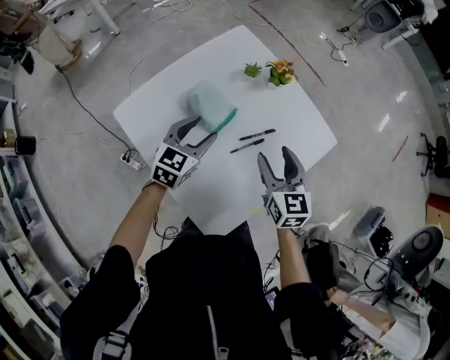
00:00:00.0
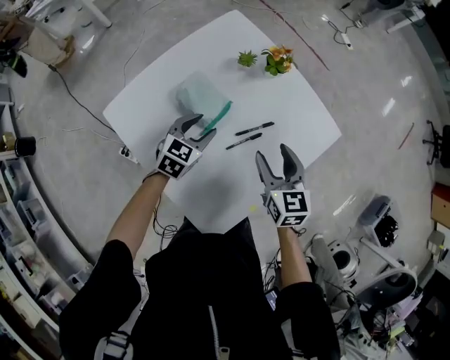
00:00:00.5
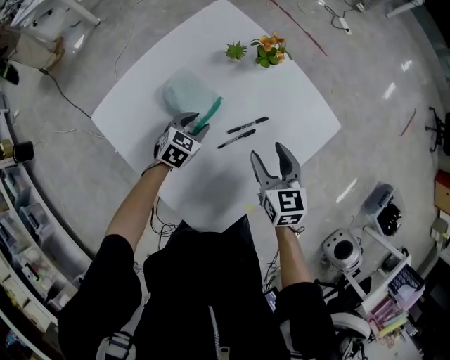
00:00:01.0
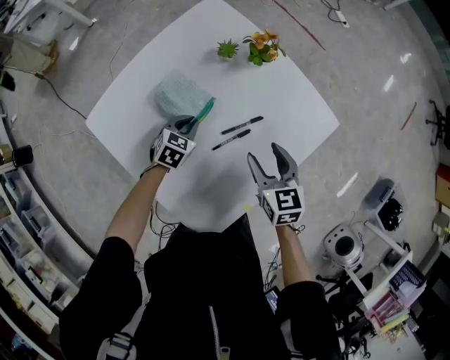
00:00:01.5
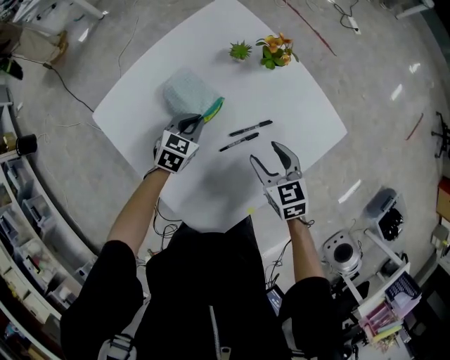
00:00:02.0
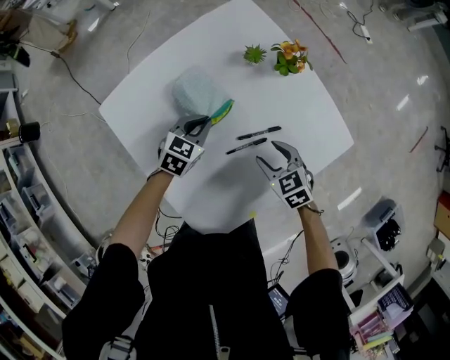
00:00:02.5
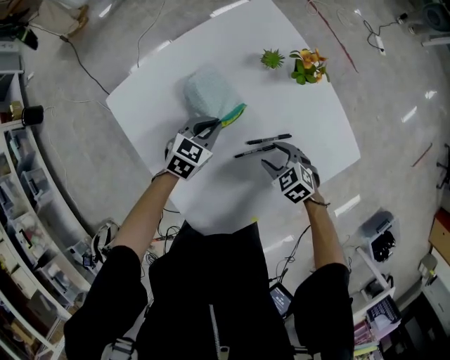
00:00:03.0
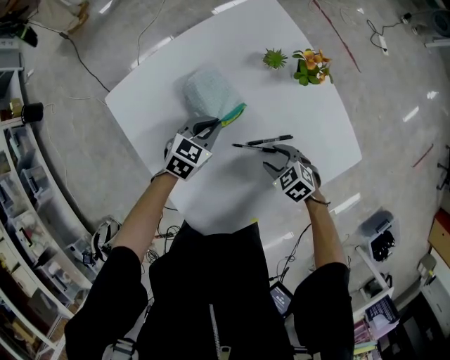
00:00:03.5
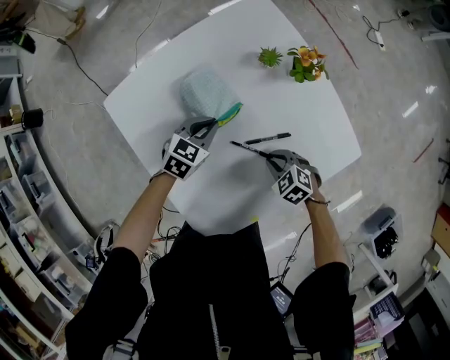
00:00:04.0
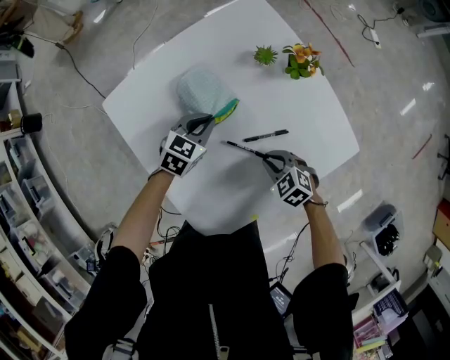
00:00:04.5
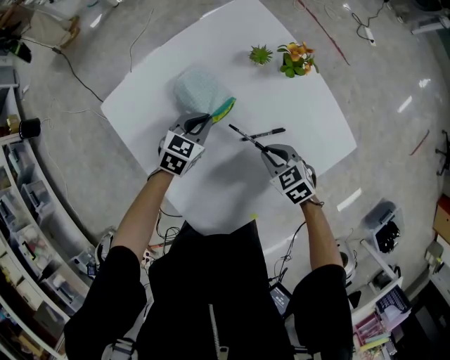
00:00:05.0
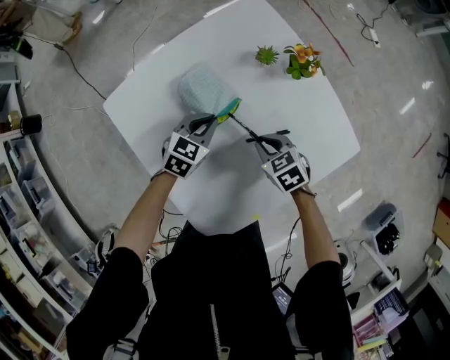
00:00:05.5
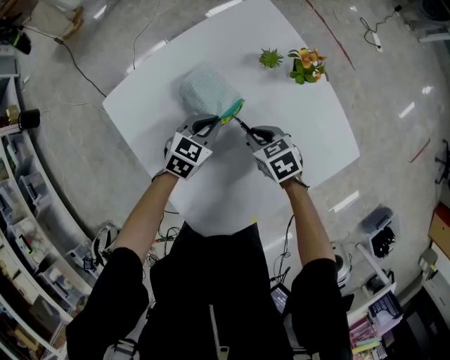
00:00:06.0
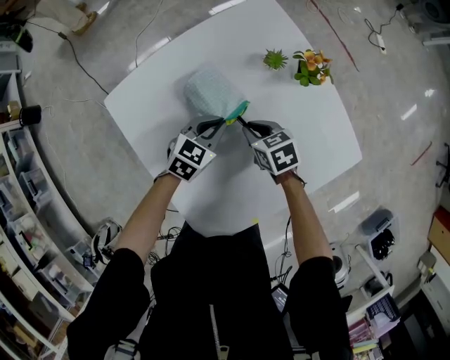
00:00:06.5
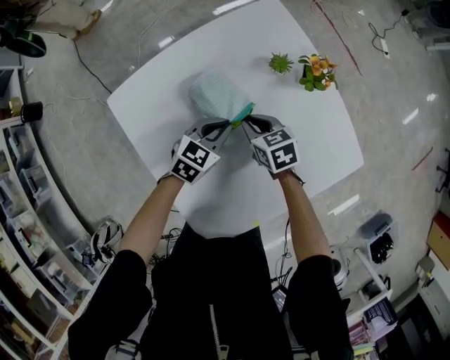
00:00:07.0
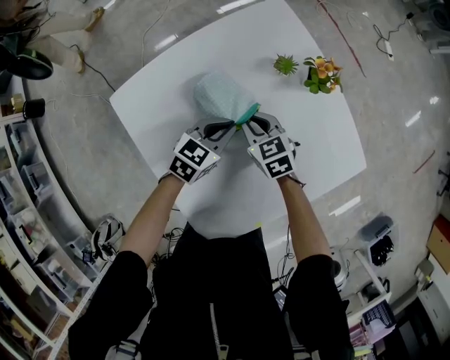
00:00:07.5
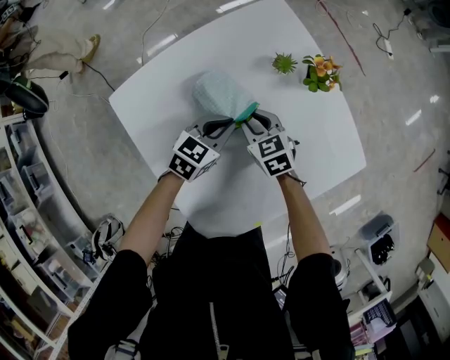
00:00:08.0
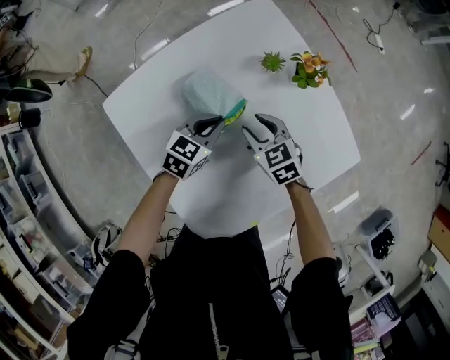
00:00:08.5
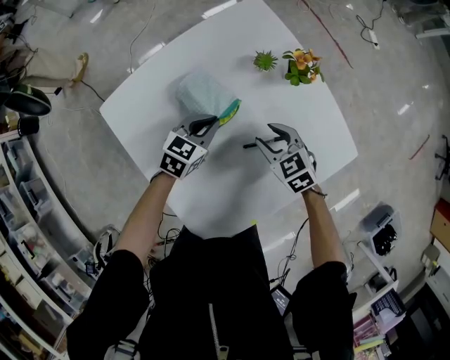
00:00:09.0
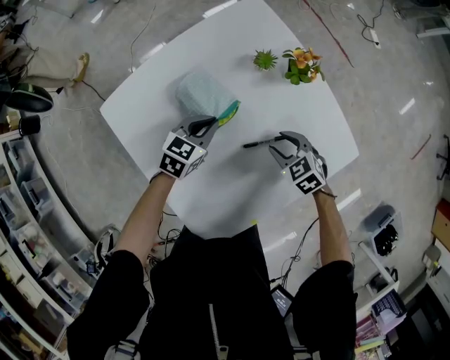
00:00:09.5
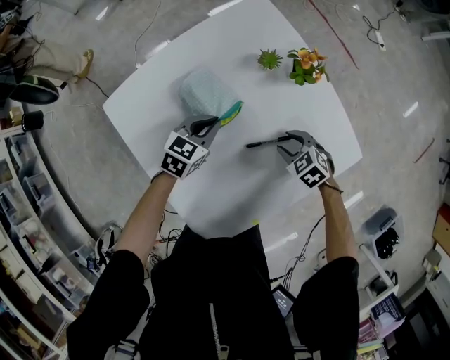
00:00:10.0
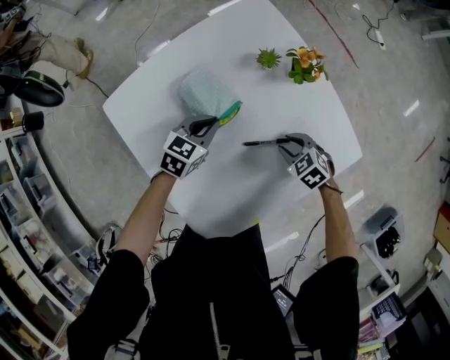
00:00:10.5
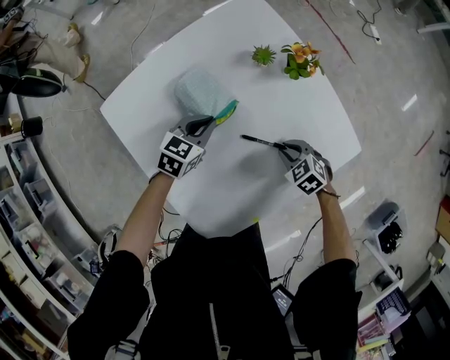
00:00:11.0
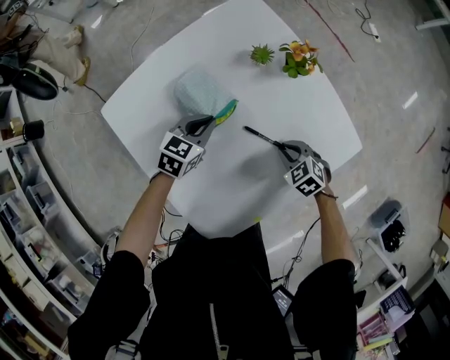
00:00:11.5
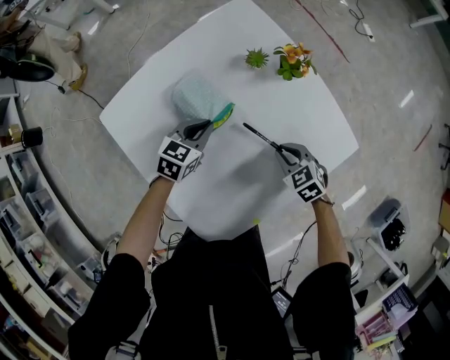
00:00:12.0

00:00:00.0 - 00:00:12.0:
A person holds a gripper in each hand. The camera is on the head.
00:00:00.0 - 00:00:02.0: The grippers both shift downward by some 15 cm. The left gripper closes. Meanwhile the right gripper rotates roughly 20 degrees.
00:00:02.0 - 00:00:04.0: The right gripper goes roughly 10 cm downward, rotates roughly 40 degrees, and closes.
00:00:04.0 - 00:00:06.0: The right gripper goes some 10 cm forward, to the left and upward, and rotates approximately 30 degrees.
00:00:06.0 - 00:00:08.0: The right gripper travels forward by some 5 cm.
00:00:08.0 - 00:00:10.0: The right gripper is displaced to the right and backward by about 15 cm, and changes its angle by approximately 20 degrees.
00:00:10.0 - 00:00:12.0: The right gripper closes its fingers.

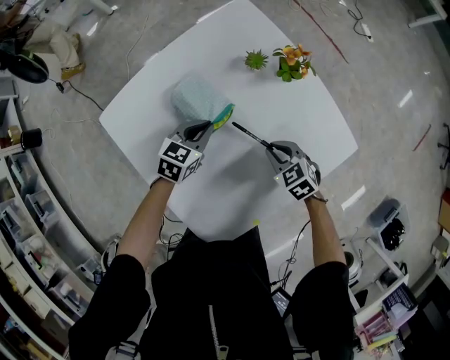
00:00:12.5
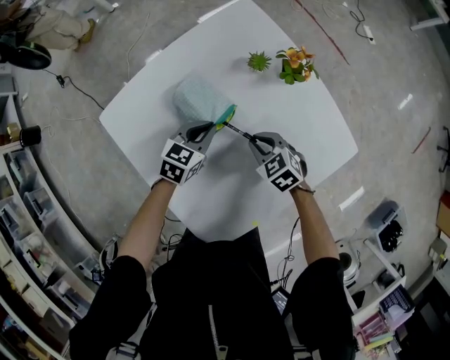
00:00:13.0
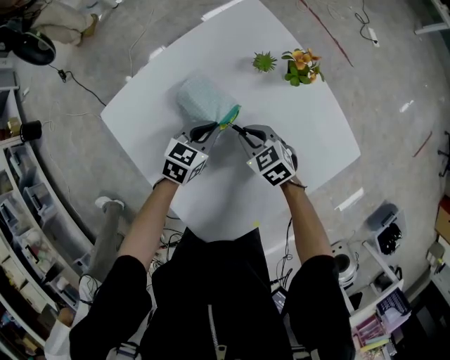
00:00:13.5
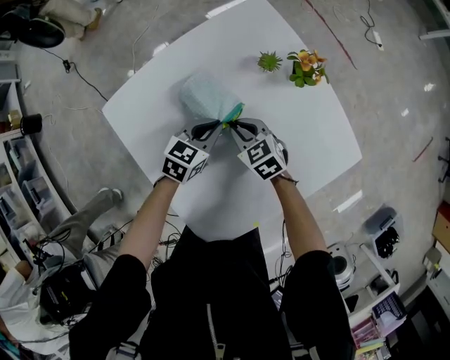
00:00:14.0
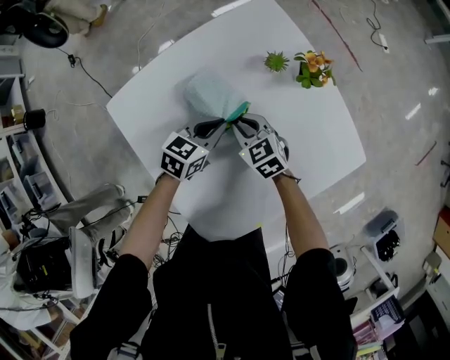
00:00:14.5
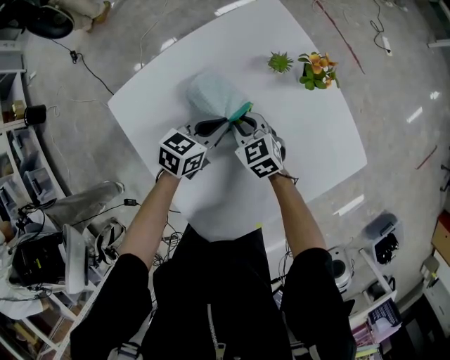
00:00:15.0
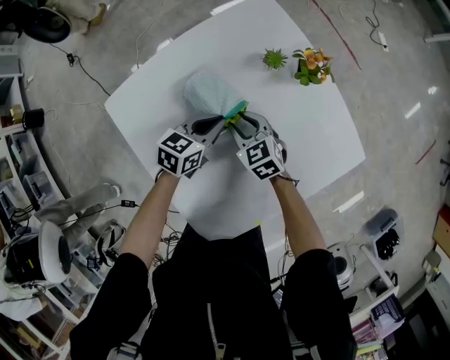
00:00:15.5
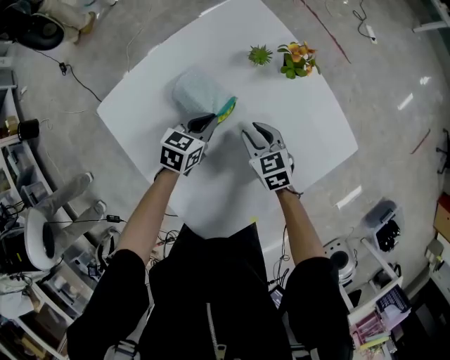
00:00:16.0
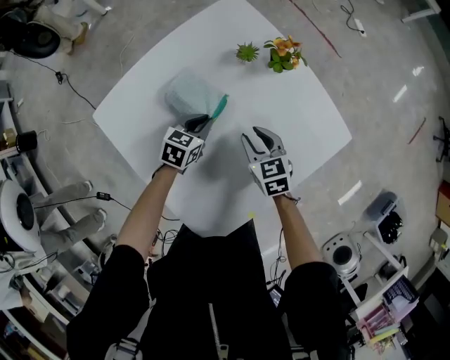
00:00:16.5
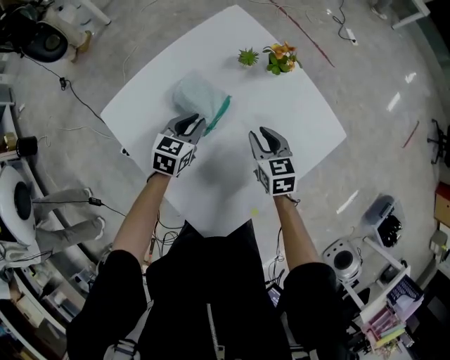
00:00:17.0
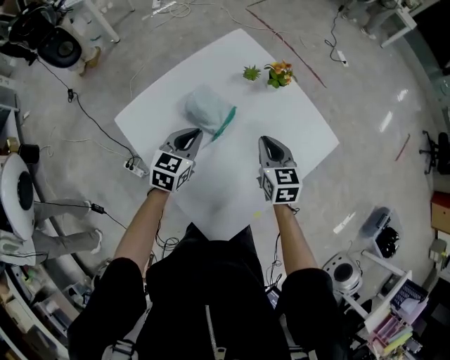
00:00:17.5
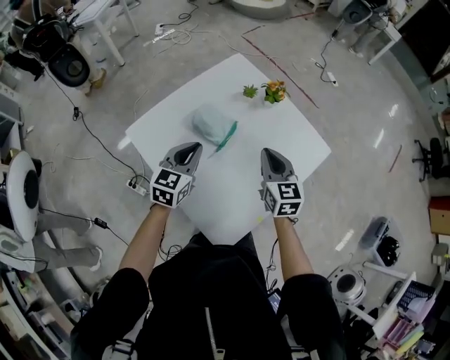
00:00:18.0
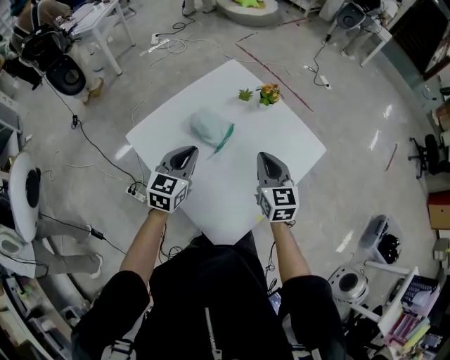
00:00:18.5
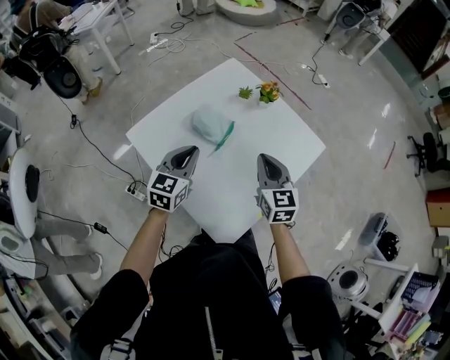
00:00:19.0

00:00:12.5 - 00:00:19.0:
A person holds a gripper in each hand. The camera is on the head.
00:00:12.5 - 00:00:14.5: The right gripper moves to the left and forward, roughly 15 cm.
00:00:14.5 - 00:00:17.0: The right gripper goes about 15 cm to the right, backward and upward, and swivels some 30 degrees.
00:00:17.0 - 00:00:19.0: The two grippers go roughly 20 cm upward and backward. The right gripper turns by about 20 degrees, and closes.

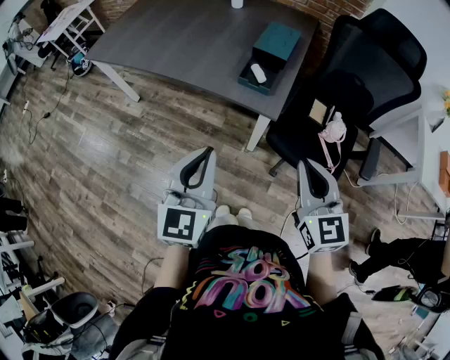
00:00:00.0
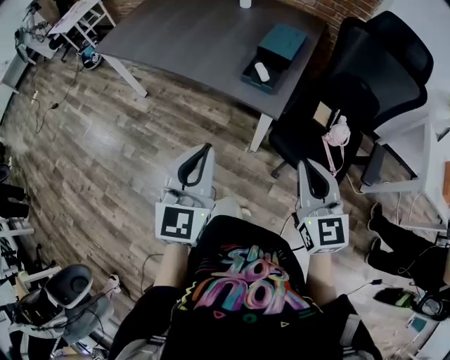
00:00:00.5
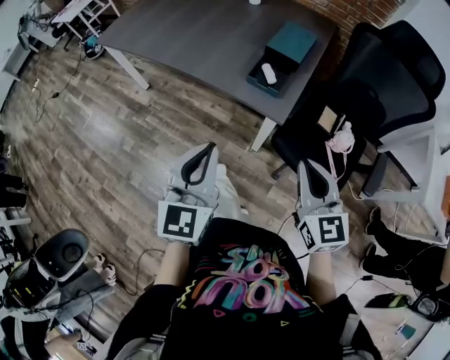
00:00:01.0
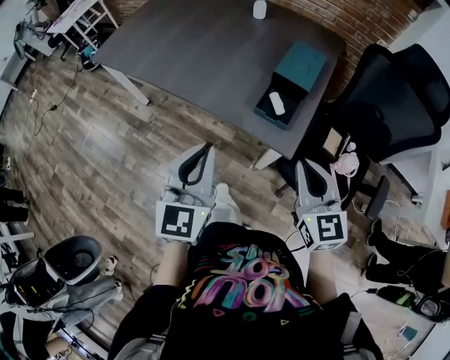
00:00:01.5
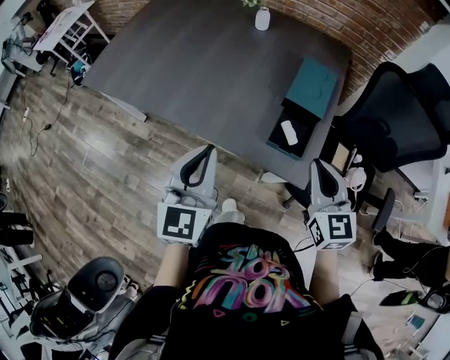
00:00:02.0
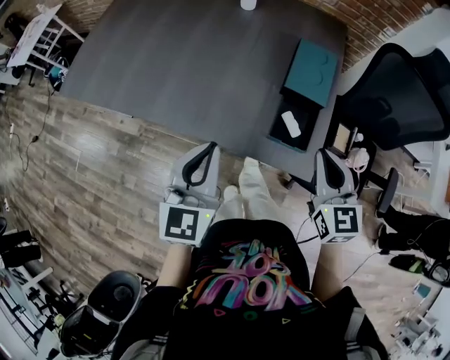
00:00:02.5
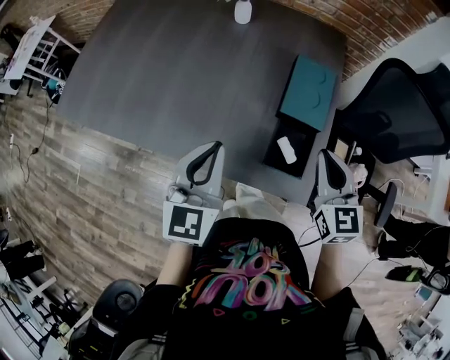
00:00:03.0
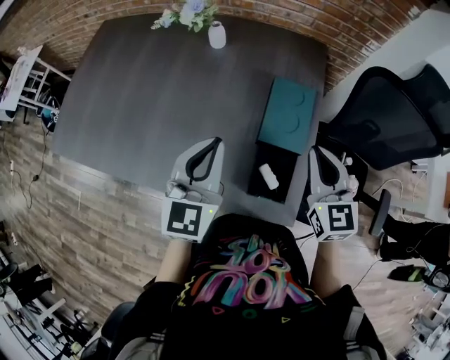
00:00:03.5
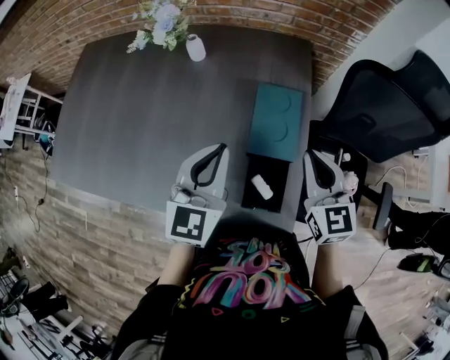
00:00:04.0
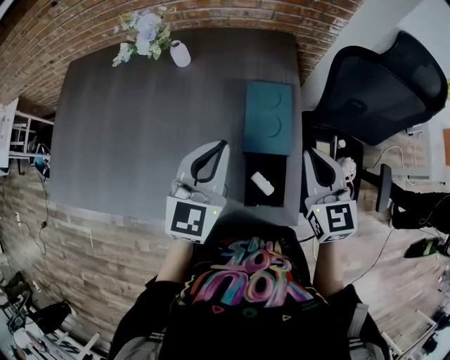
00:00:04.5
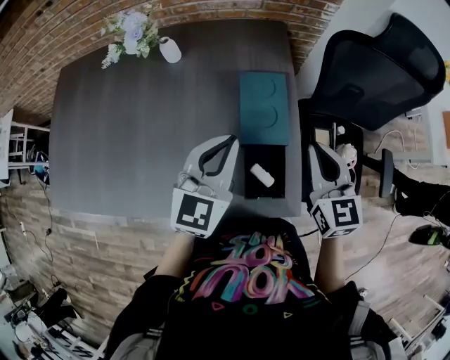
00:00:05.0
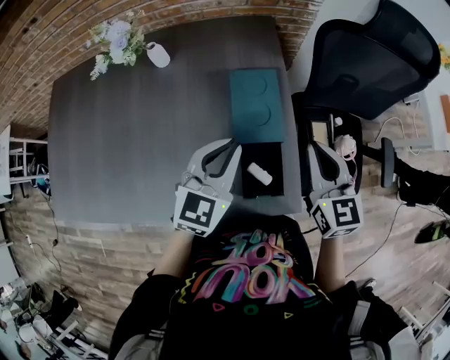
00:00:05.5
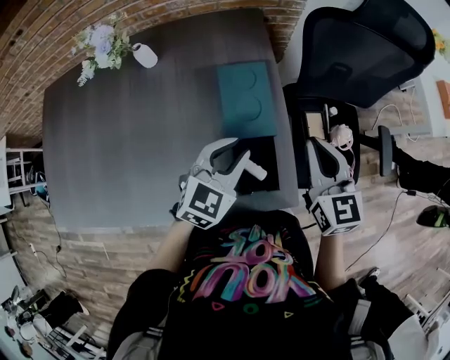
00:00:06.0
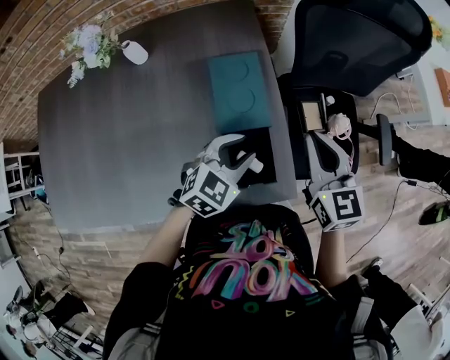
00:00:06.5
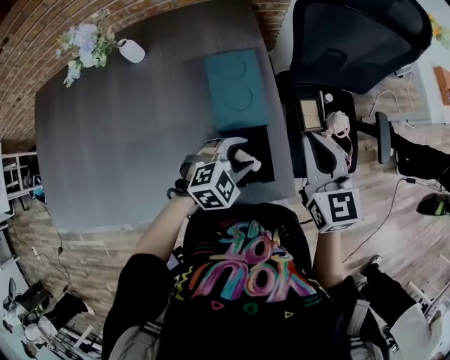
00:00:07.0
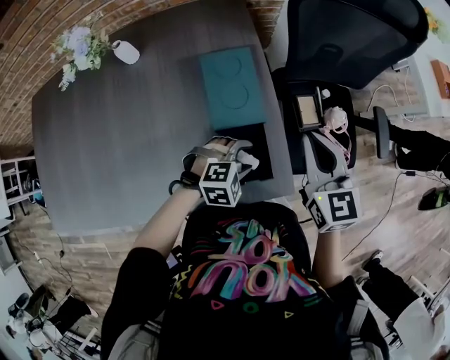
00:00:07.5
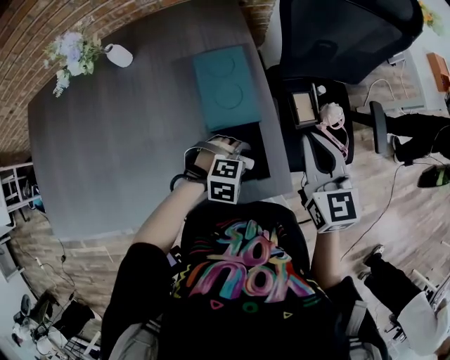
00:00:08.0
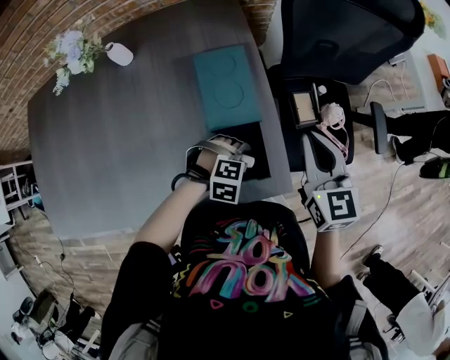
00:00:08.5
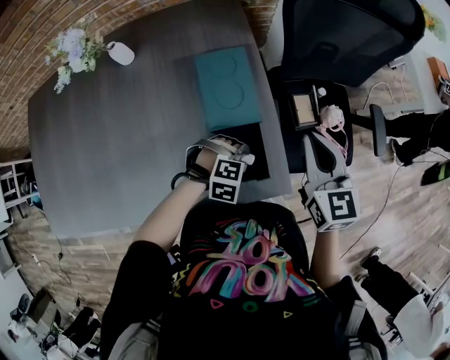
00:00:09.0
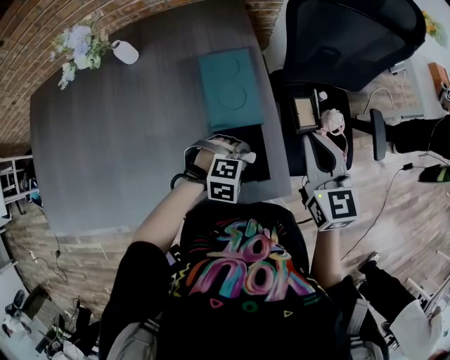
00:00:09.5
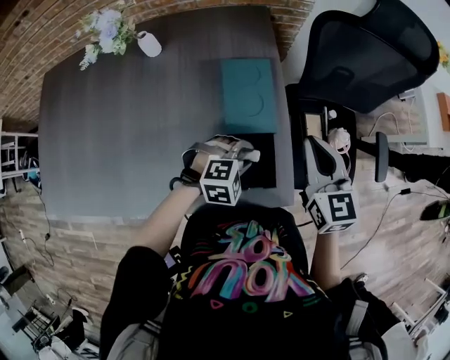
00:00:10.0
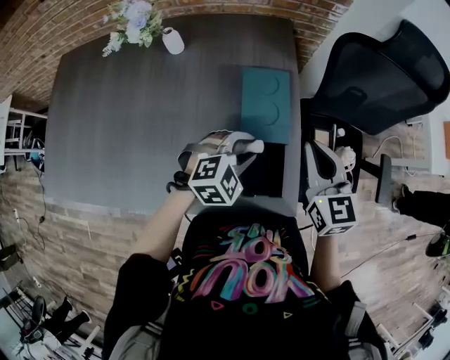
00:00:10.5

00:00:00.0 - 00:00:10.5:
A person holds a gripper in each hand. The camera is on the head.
00:00:00.0 - 00:00:02.0: Both grippers move forward, approximately 25 cm.
00:00:02.0 - 00:00:04.0: The right gripper is displaced forward by some 20 cm. Meanwhile the left gripper shifts roughly 30 cm forward and to the right, and turns by approximately 20 degrees.
00:00:04.0 - 00:00:06.5: The right gripper moves approximately 10 cm. Meanwhile the left gripper goes roughly 15 cm downward, turns by approximately 50 degrees, and opens its fingers.
00:00:06.5 - 00:00:08.5: The left gripper goes about 15 cm downward, and tips its fingers downward by approximately 30 degrees.
00:00:08.5 - 00:00:10.5: The right gripper travels to the left by about 10 cm. The left gripper travels upward and to the left by about 15 cm, turns by approximately 40 degrees, and closes up.
